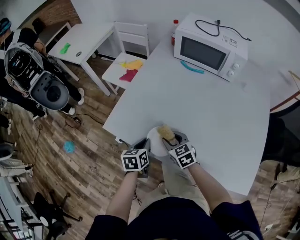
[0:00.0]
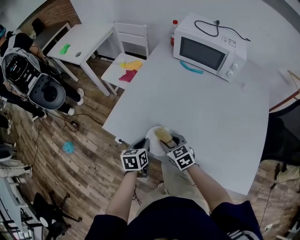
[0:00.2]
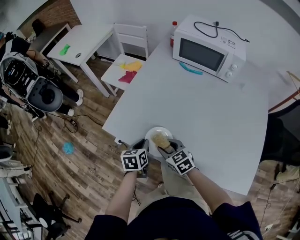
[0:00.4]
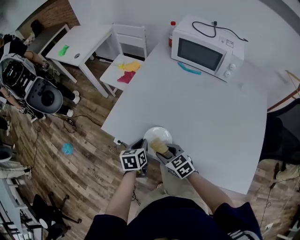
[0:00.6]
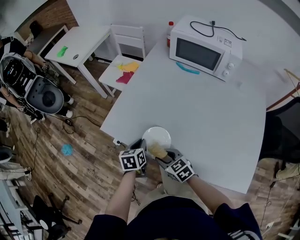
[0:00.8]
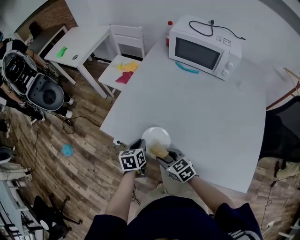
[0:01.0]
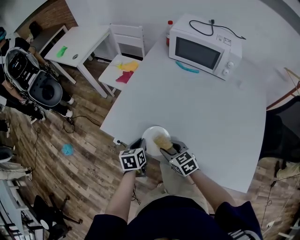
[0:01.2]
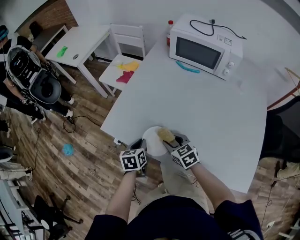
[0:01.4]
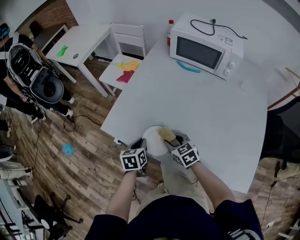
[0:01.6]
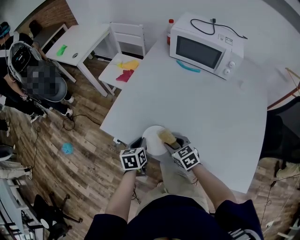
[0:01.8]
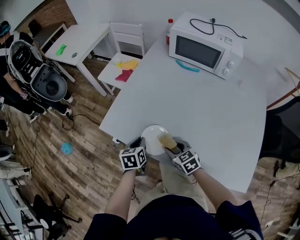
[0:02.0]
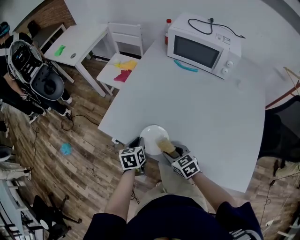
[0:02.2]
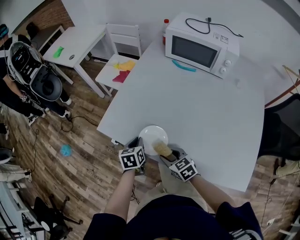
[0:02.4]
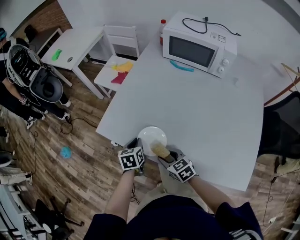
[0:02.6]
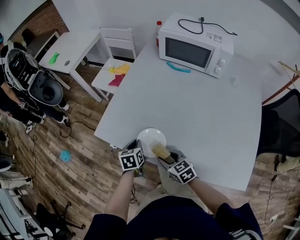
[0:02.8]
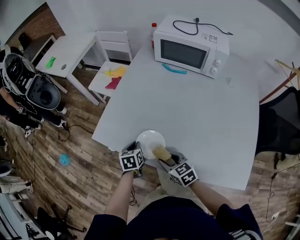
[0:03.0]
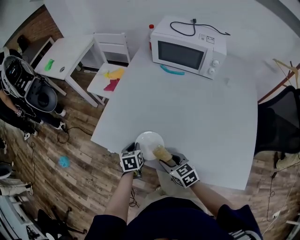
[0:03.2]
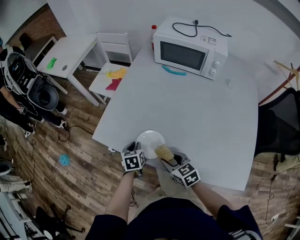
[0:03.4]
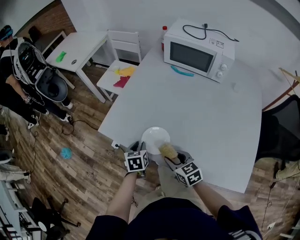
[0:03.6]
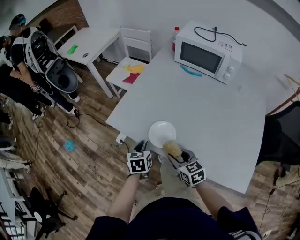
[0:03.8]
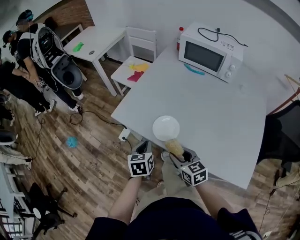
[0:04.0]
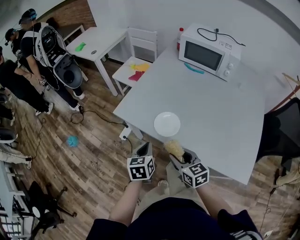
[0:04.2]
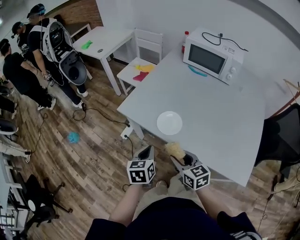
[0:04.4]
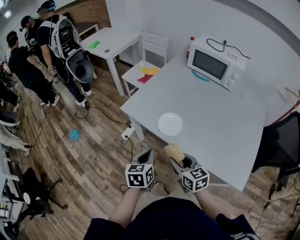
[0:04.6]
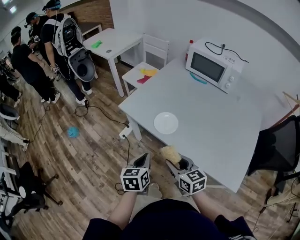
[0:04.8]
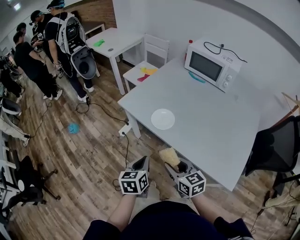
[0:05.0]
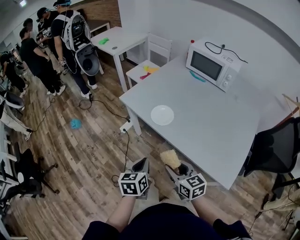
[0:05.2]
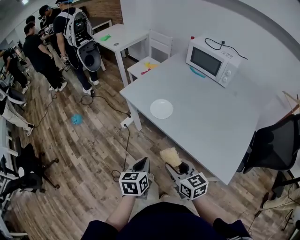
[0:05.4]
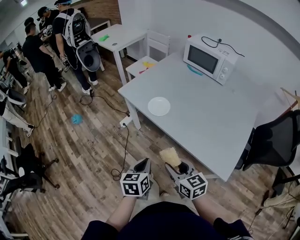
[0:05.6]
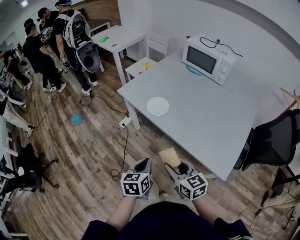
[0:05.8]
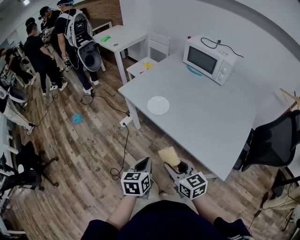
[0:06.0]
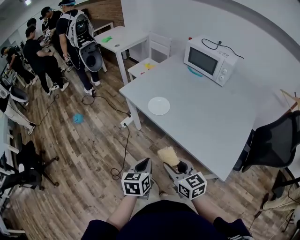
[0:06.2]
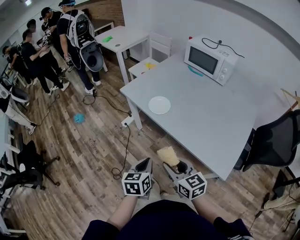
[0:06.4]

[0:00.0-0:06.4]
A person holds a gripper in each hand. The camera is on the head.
0:00.0 to 0:01.6: The right gripper travels backward and back again, roughly 10 cm each way.
0:01.6 to 0:03.2: The right gripper is displaced backward by approximately 10 cm.
0:03.2 to 0:04.8: The right gripper goes about 20 cm backward and upward; the left gripper heads backward and upward, covering about 30 cm, and turns by some 20 degrees.
0:04.8 to 0:06.4: The two grippers go approximately 15 cm backward.

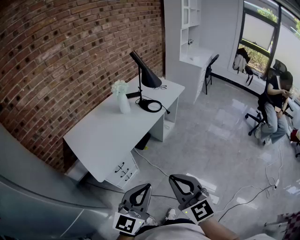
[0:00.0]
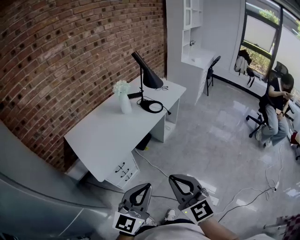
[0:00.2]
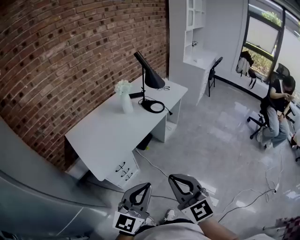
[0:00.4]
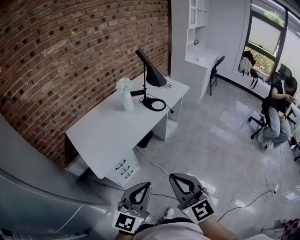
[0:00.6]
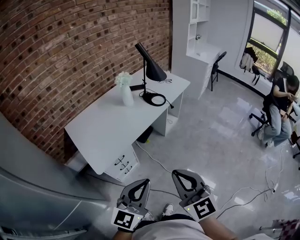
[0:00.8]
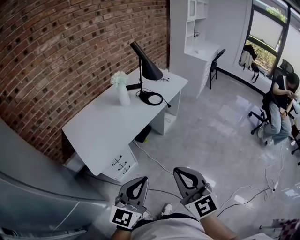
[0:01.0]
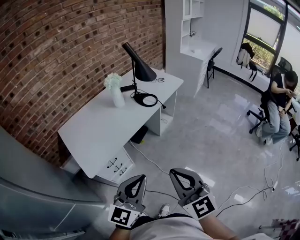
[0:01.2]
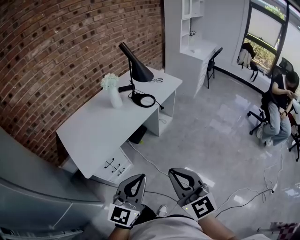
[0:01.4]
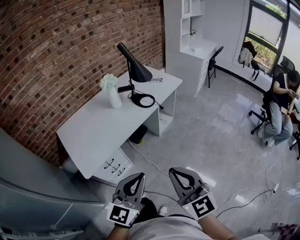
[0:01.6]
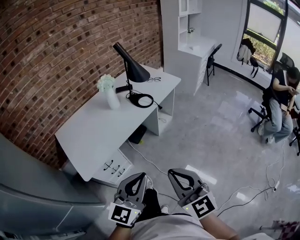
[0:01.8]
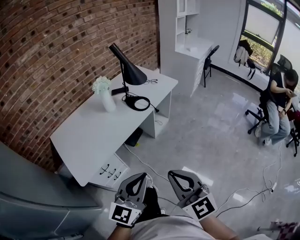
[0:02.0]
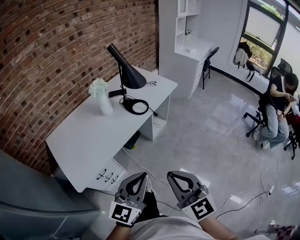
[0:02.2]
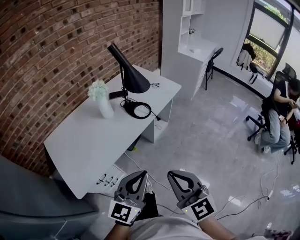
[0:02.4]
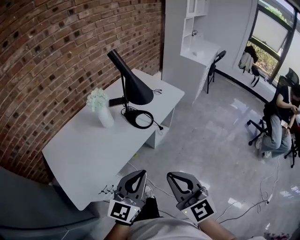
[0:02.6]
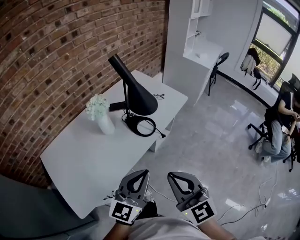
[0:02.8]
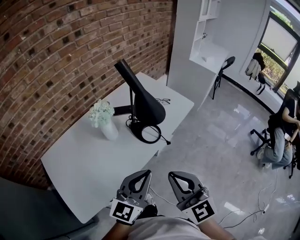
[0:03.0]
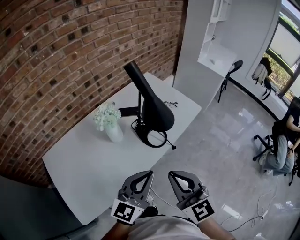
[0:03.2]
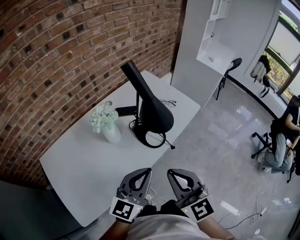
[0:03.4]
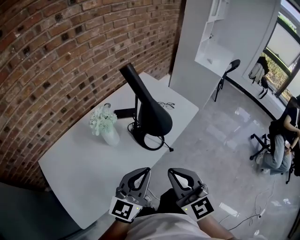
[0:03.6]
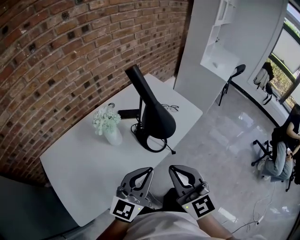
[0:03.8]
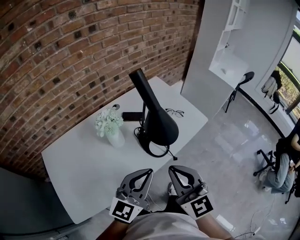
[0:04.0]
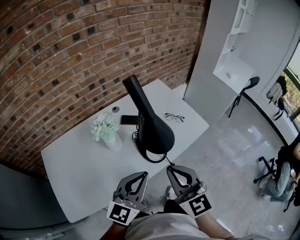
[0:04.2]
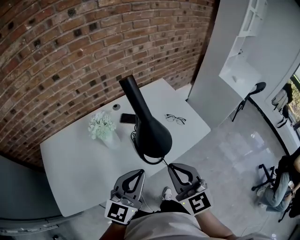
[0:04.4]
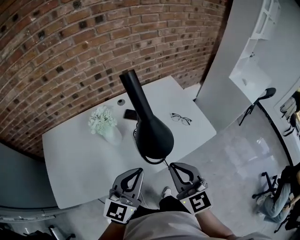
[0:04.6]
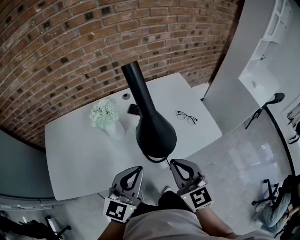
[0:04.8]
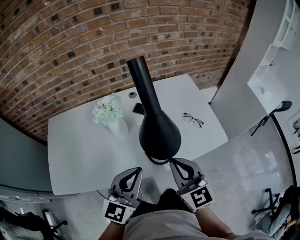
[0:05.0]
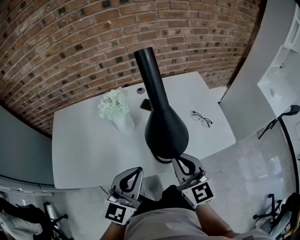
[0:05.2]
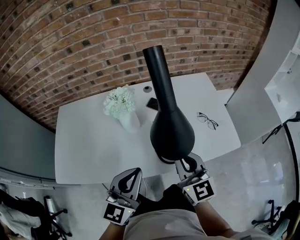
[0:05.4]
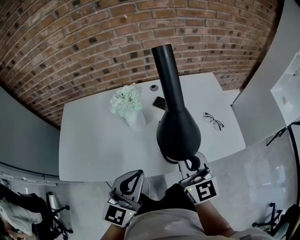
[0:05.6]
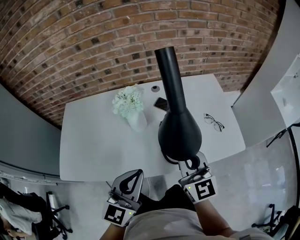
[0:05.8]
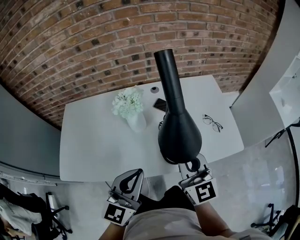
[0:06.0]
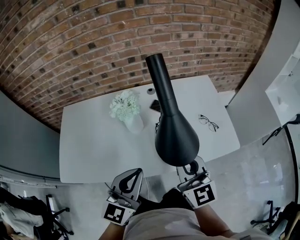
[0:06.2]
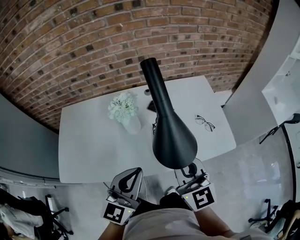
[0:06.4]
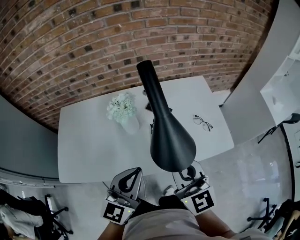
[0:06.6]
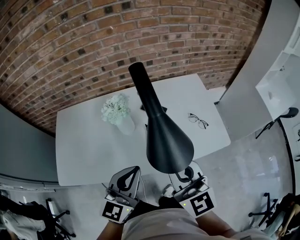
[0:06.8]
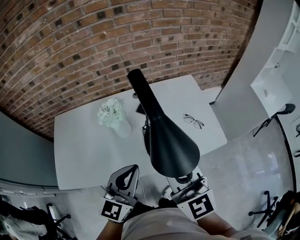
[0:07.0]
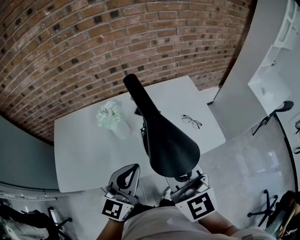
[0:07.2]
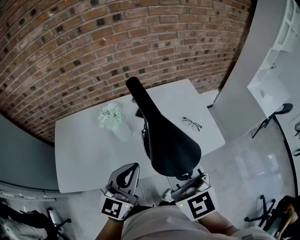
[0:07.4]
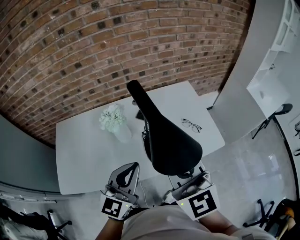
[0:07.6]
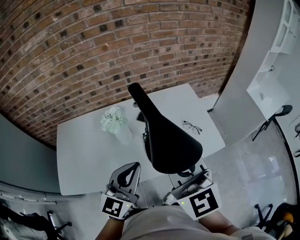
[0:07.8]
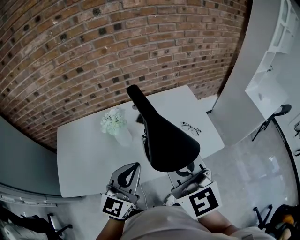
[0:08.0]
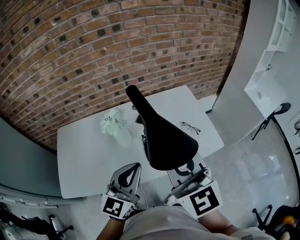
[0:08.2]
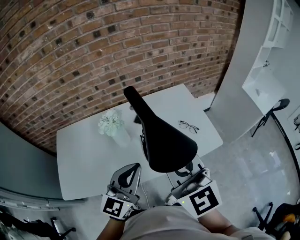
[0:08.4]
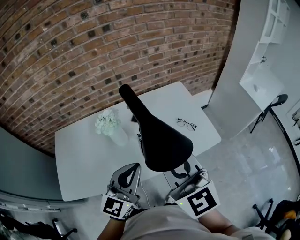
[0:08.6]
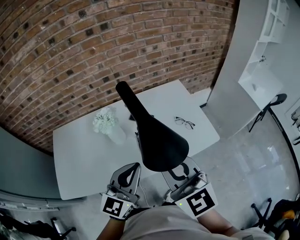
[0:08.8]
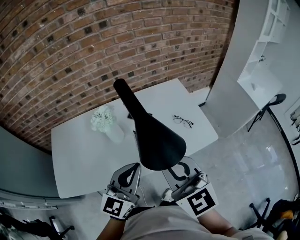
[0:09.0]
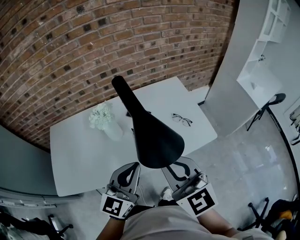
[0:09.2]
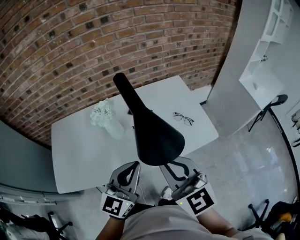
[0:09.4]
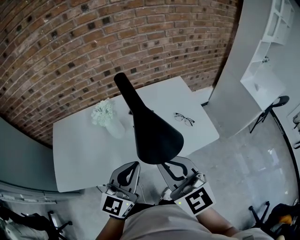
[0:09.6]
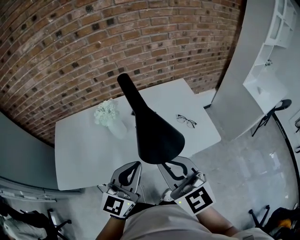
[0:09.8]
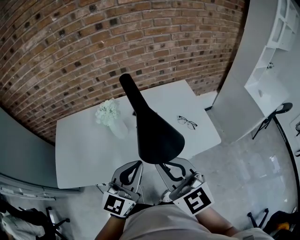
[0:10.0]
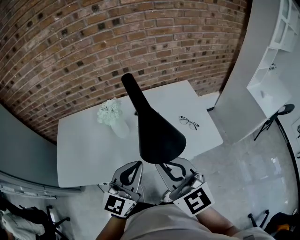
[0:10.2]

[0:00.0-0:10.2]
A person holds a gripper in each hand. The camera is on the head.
0:00.0 to 0:01.4: The left gripper is displaced to the right and forward by roughly 10 cm. The right gripper travels to the right by approximately 10 cm.
0:01.4 to 0:03.0: The grippers both shift forward by approximately 35 cm.
0:03.0 to 0:04.4: The grippers both shift forward by approximately 15 cm.
0:04.4 to 0:05.8: The right gripper travels forward and downward by roughly 10 cm, and rotates about 20 degrees. The left gripper travels downward by some 5 cm, and turns by approximately 30 degrees.
0:05.8 to 0:07.2: The right gripper travels upward by approximately 15 cm, while the left gripper heads upward, covering about 5 cm.
0:07.2 to 0:10.2: There are only small adjustments of the grippers.

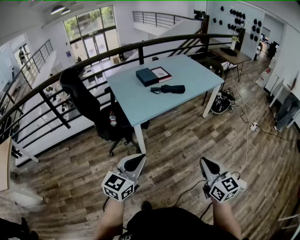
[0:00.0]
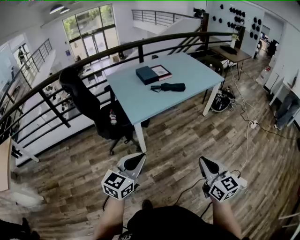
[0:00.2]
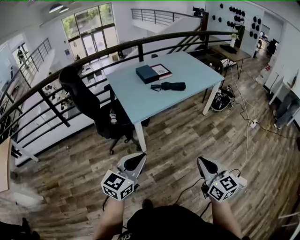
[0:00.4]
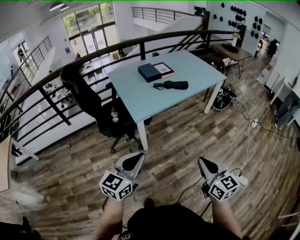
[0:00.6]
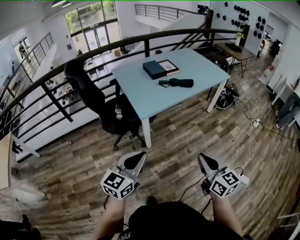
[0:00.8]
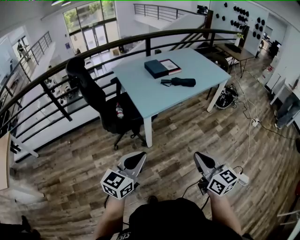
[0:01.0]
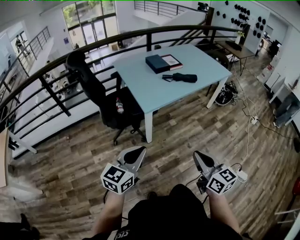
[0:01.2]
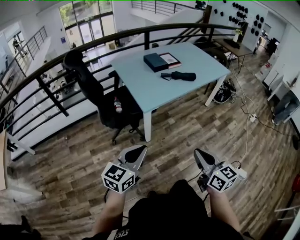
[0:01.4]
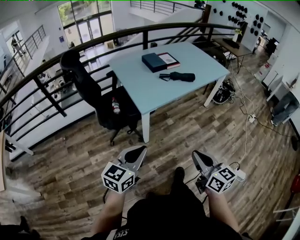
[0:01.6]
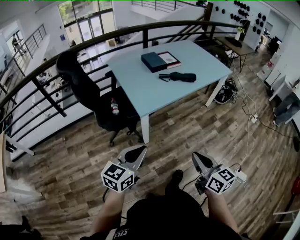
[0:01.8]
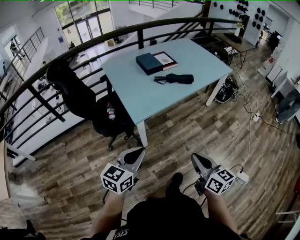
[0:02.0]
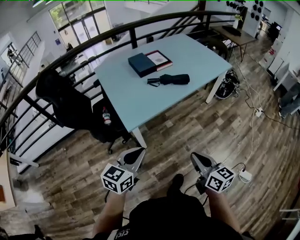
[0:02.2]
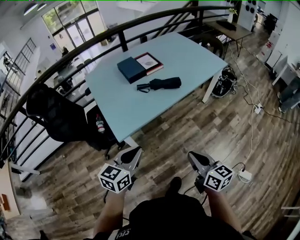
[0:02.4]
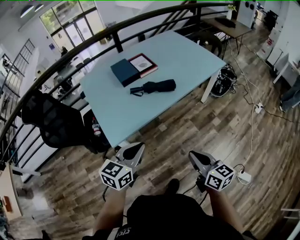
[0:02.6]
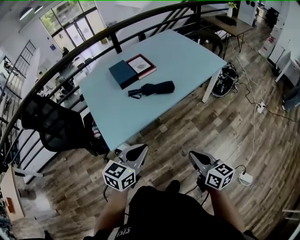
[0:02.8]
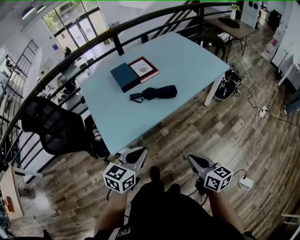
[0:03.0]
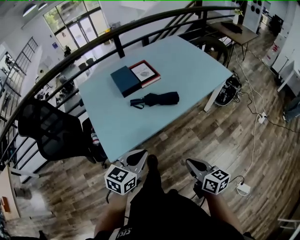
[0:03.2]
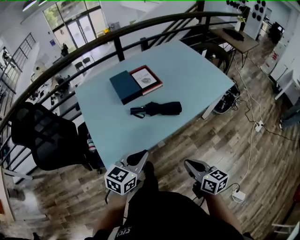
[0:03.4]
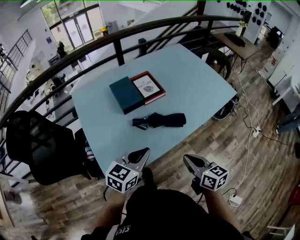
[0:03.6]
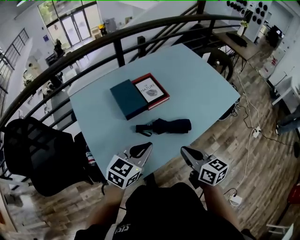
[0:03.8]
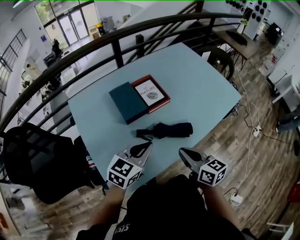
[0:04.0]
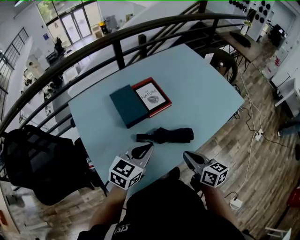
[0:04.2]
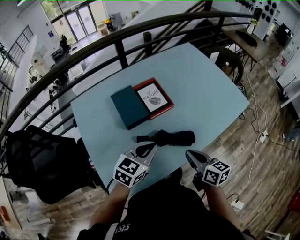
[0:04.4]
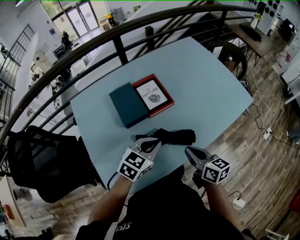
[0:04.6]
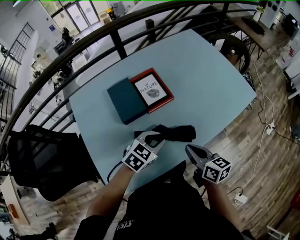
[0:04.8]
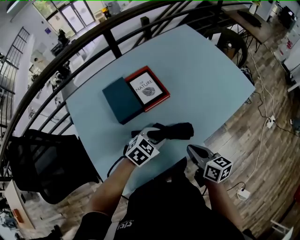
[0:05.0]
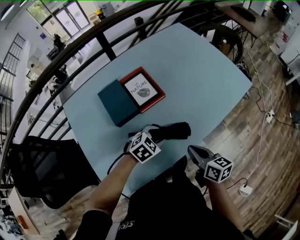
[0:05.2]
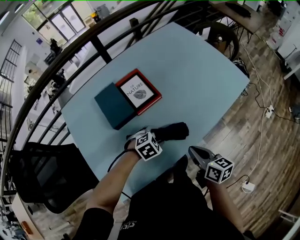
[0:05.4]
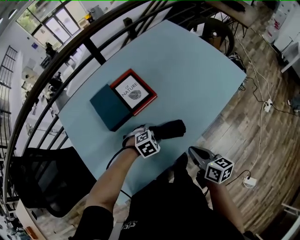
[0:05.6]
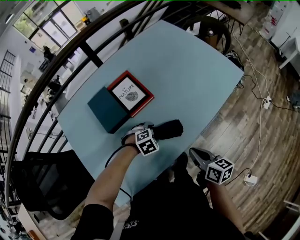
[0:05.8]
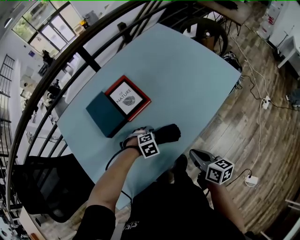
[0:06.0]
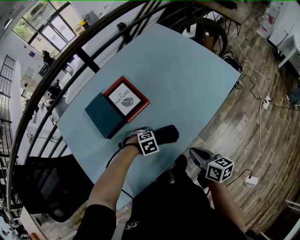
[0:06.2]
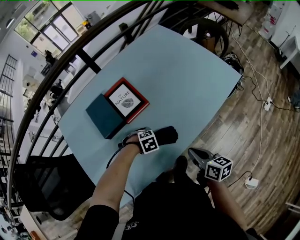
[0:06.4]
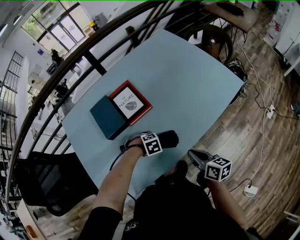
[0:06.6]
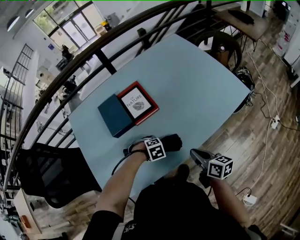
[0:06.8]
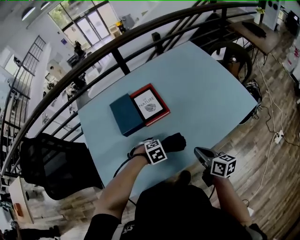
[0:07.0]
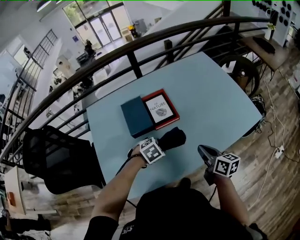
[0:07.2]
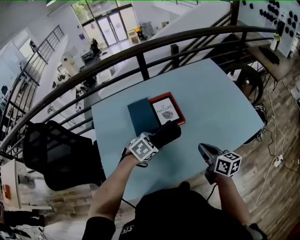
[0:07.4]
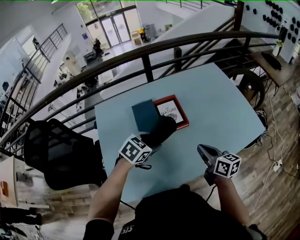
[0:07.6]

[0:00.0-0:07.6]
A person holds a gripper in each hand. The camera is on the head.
0:00.0 to 0:01.6: The left gripper travels to the left and downward by some 15 cm; the right gripper travels to the left by some 15 cm.
0:01.6 to 0:03.0: Both grippers move forward and to the right, about 40 cm.
0:03.0 to 0:04.6: Both grippers move forward, approximately 40 cm.
0:04.6 to 0:06.0: The left gripper shifts roughly 20 cm downward, tilts its fingers about 50 degrees downward, and opens its fingers. The right gripper ends up approximately 15 cm from where it was.
0:06.0 to 0:07.6: The right gripper moves some 20 cm, and rotates some 20 degrees; the left gripper travels upward by some 20 cm, and twists some 40 degrees counterclockwise, seen from behind.
